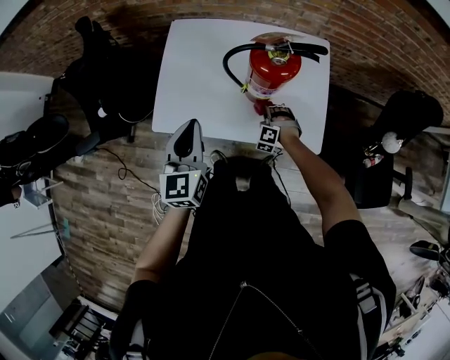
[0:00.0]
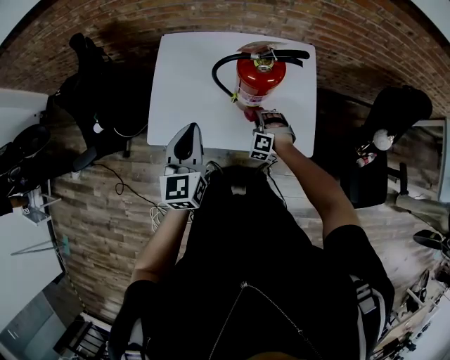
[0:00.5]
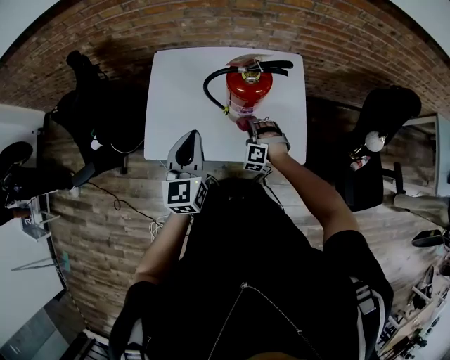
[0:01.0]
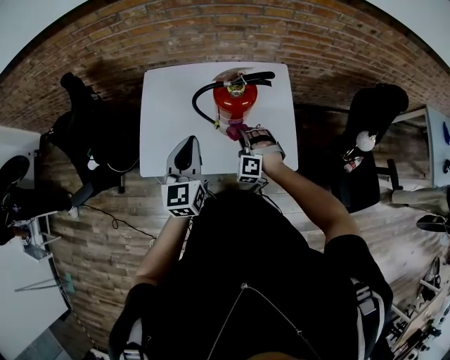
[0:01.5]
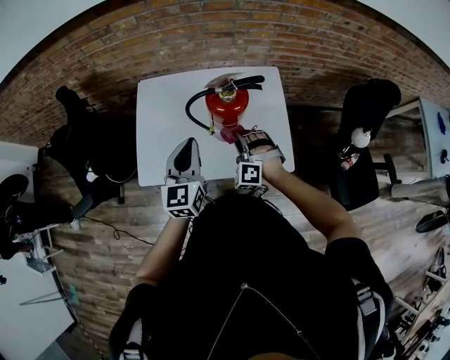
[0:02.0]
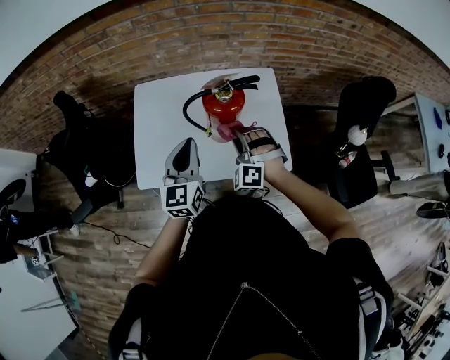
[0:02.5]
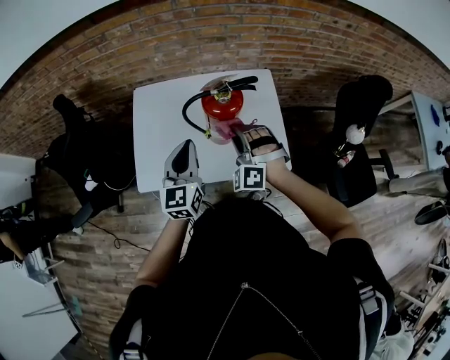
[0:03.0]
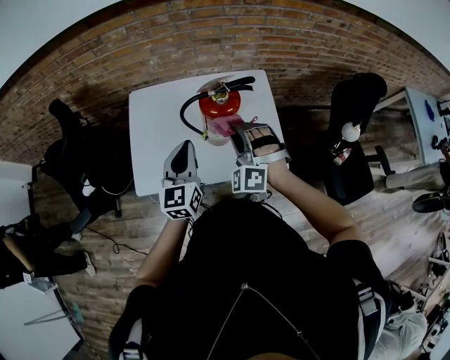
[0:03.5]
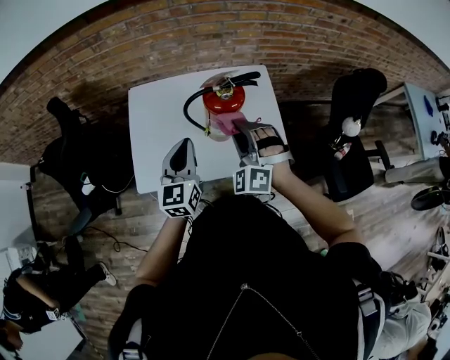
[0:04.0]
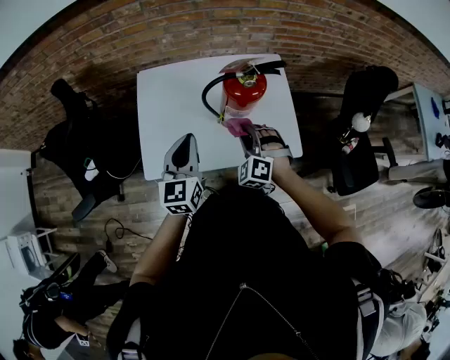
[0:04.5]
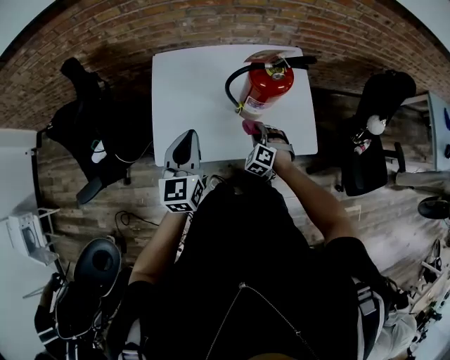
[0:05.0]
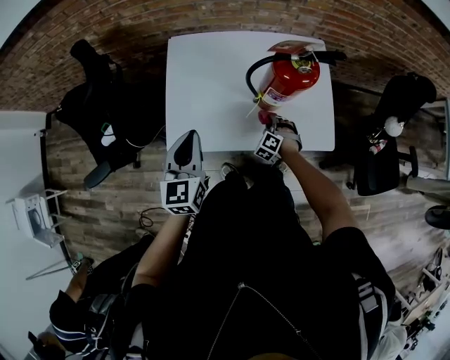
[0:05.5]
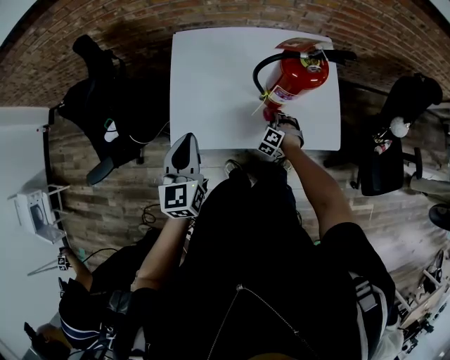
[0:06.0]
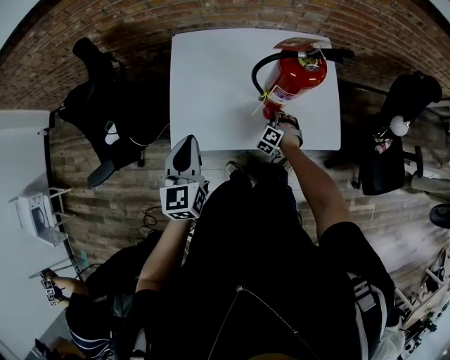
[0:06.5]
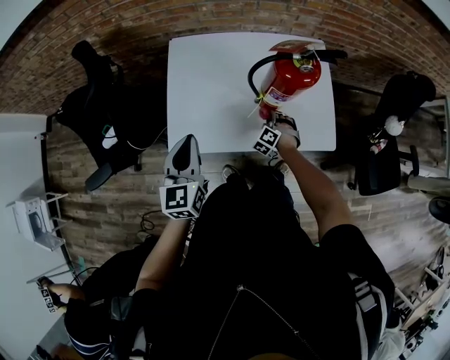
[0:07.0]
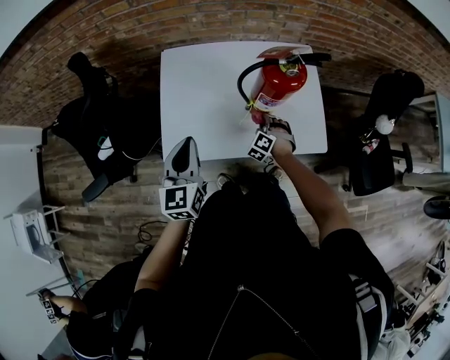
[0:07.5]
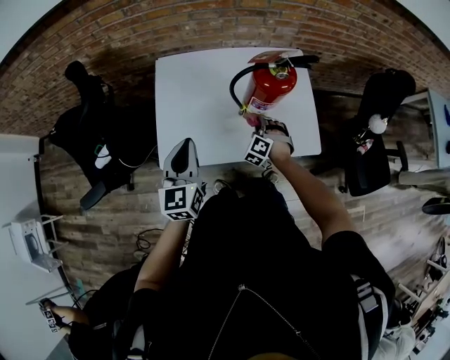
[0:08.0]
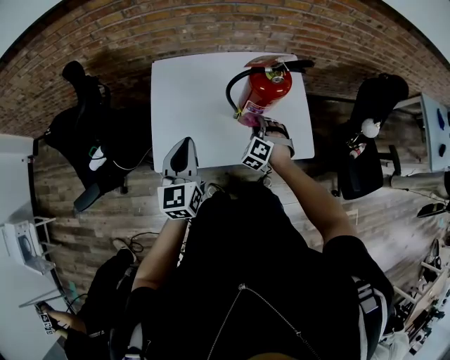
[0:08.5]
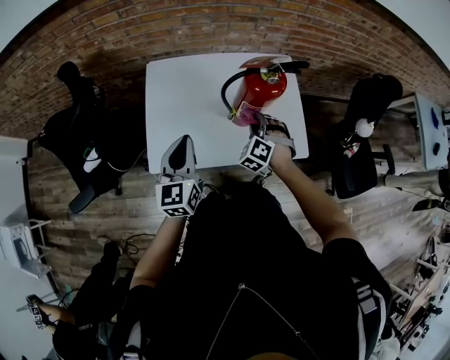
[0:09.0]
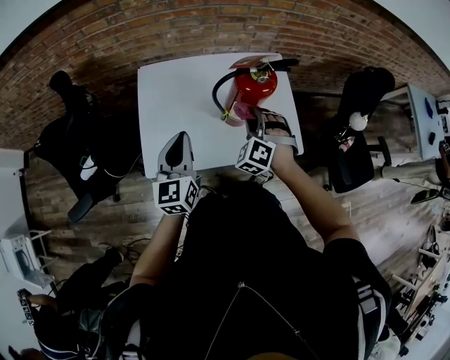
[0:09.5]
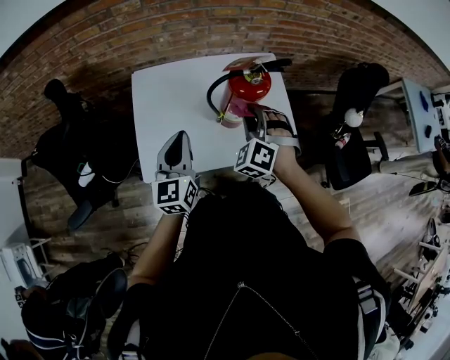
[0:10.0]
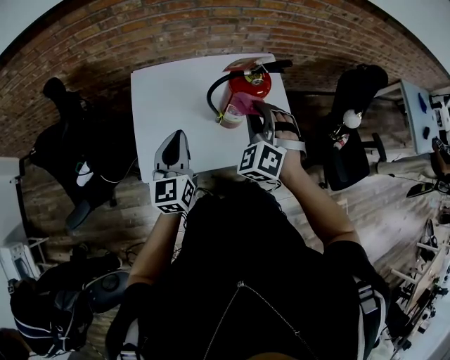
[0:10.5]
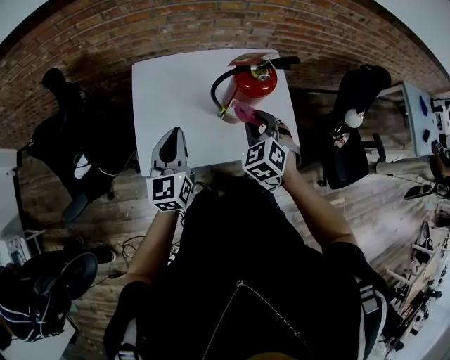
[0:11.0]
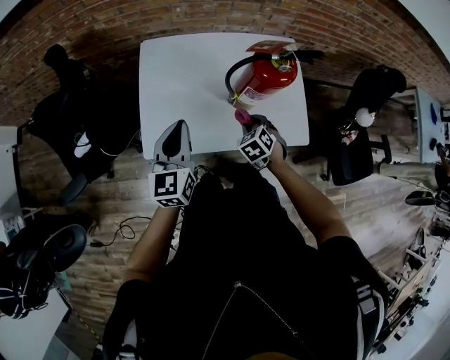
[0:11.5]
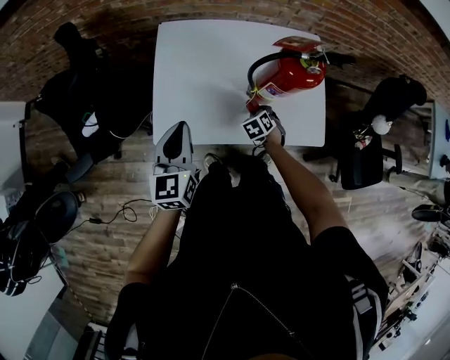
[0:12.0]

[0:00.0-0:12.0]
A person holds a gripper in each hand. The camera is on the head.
0:00.0 to 0:02.0: The right gripper goes some 20 cm upward; the left gripper moves to the right and forward, roughly 10 cm.
0:02.0 to 0:04.0: The right gripper is displaced upward by roughly 15 cm.
0:04.0 to 0:06.0: The right gripper goes roughly 40 cm downward, and tips its fingers downward by roughly 30 degrees. Meanwhile the left gripper heads to the left and backward, covering some 20 cm.
0:06.0 to 0:08.0: The right gripper heads upward, covering about 15 cm.
0:08.0 to 0:10.0: The right gripper shifts roughly 25 cm upward, while the left gripper ends up some 5 cm from where it was.
0:10.0 to 0:12.0: The left gripper travels to the left and downward by some 10 cm. Meanwhile the right gripper heads downward, covering some 30 cm, and points its fingers roughly 30 degrees further downward.

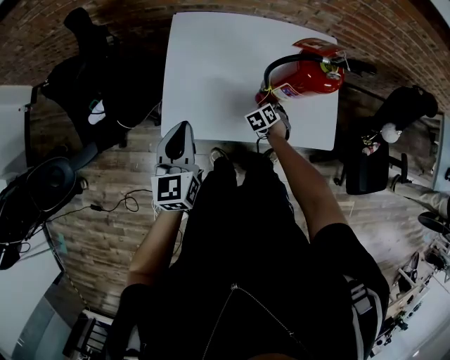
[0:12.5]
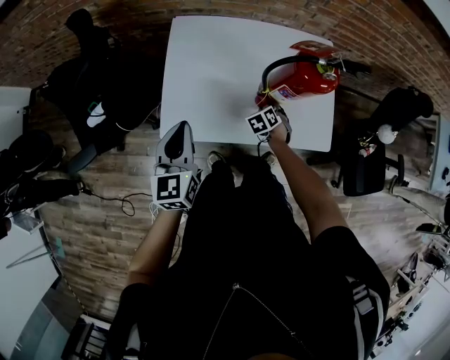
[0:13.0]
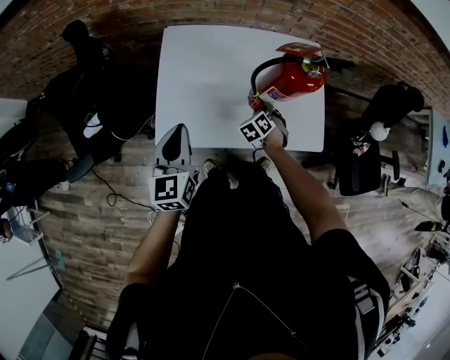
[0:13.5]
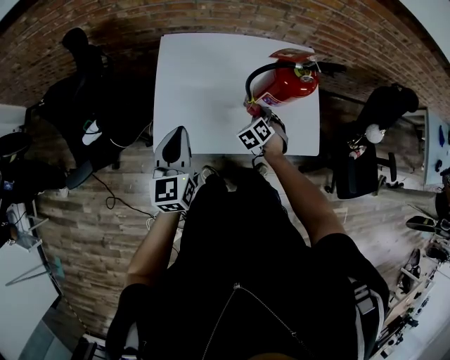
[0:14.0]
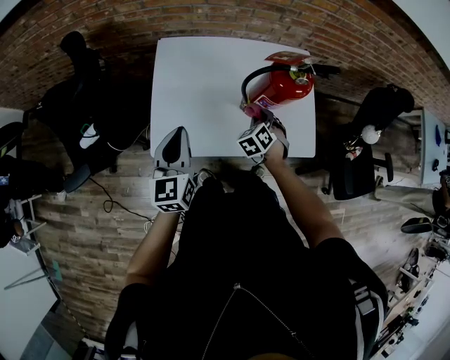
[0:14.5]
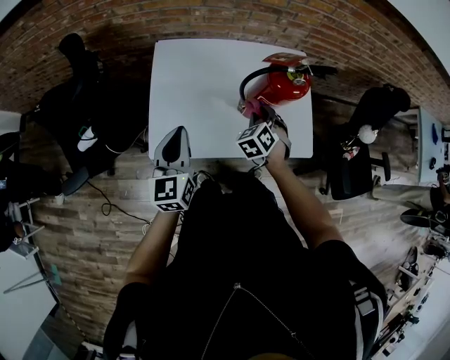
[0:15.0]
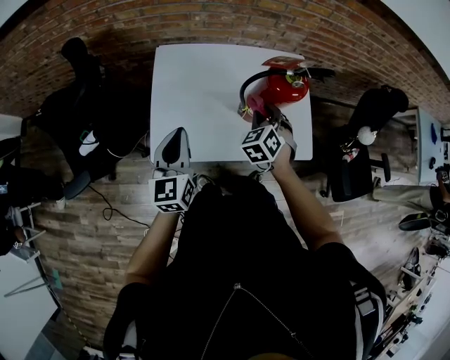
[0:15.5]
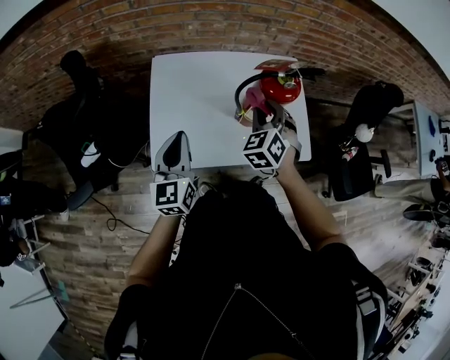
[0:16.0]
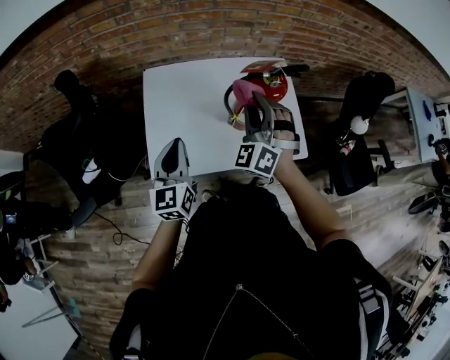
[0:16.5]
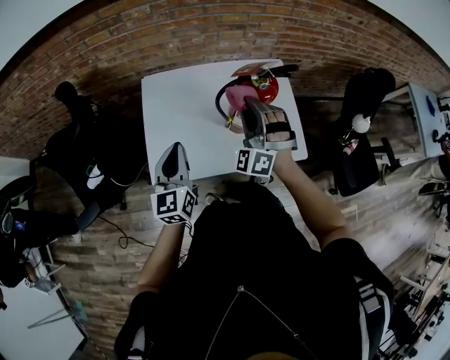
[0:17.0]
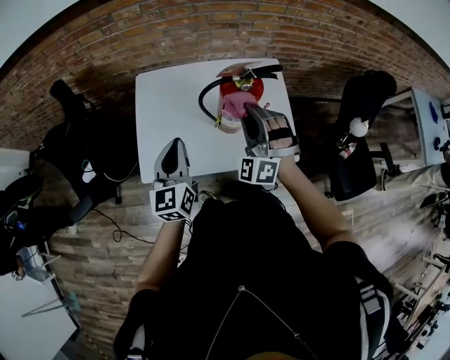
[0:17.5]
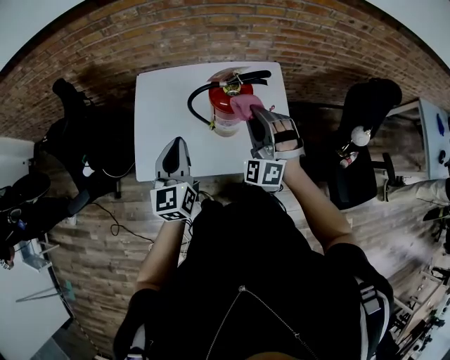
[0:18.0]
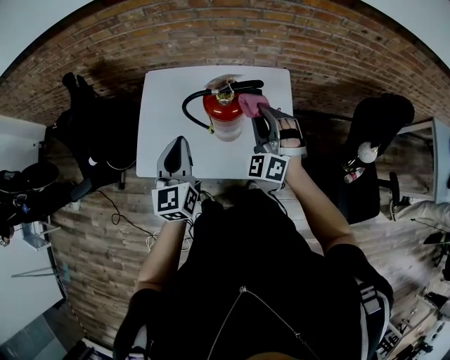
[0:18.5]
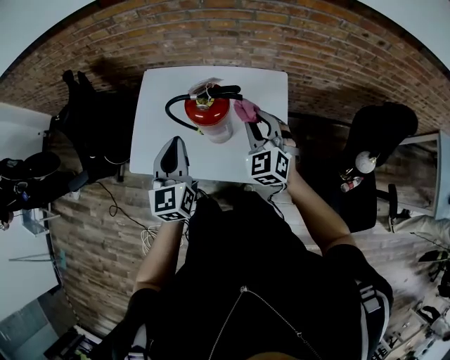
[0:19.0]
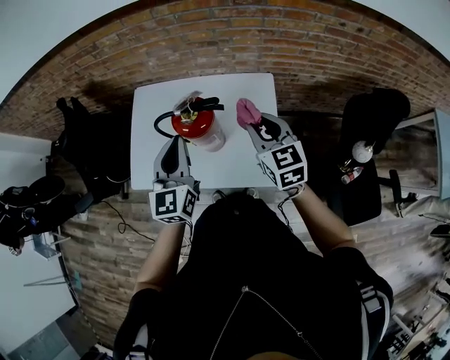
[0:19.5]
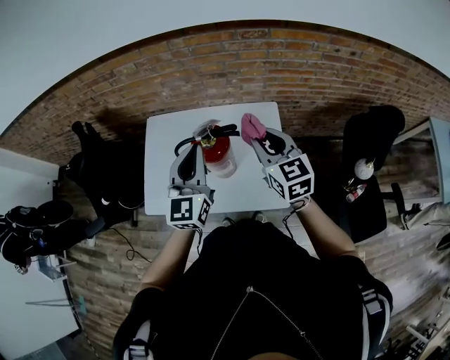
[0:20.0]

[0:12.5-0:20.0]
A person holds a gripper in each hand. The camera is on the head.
0:12.5 to 0:14.5: The right gripper heads upward, covering about 15 cm.
0:14.5 to 0:16.5: The right gripper heads upward, covering some 25 cm, and tips its fingers upward by about 40 degrees.
0:16.5 to 0:18.0: The two grippers go some 15 cm to the right.
0:18.0 to 0:20.0: The two grippers go about 15 cm to the right and upward. The right gripper rotates around the line of its fingers by roughly 70 degrees, clockwise from behind.

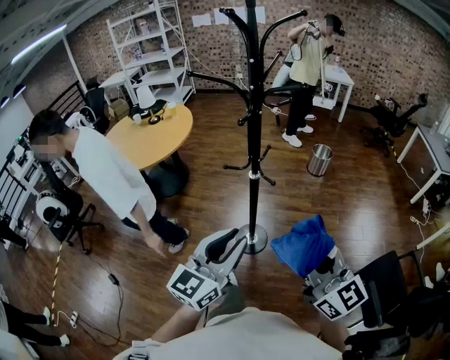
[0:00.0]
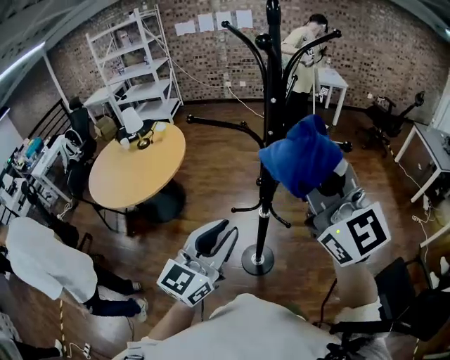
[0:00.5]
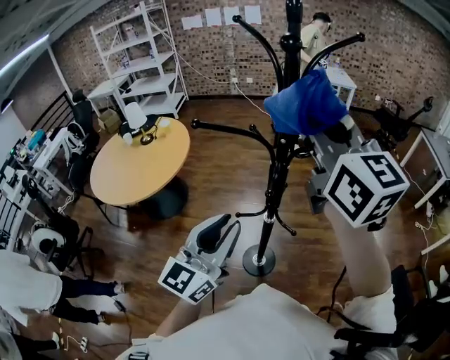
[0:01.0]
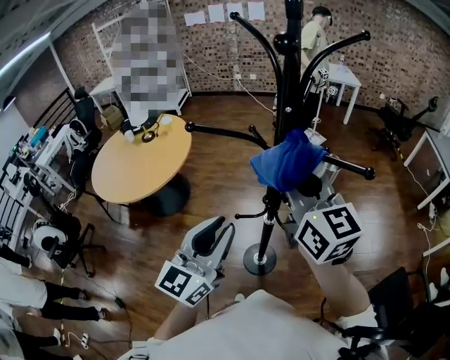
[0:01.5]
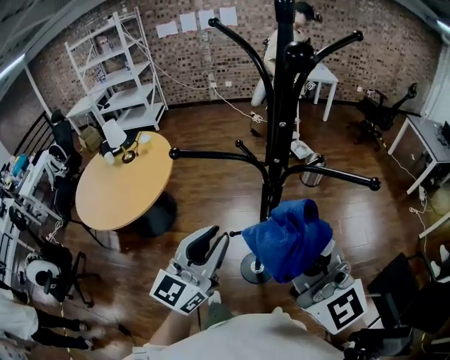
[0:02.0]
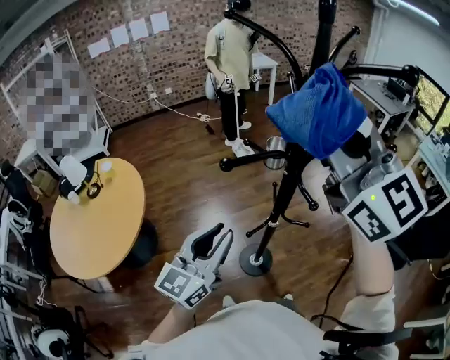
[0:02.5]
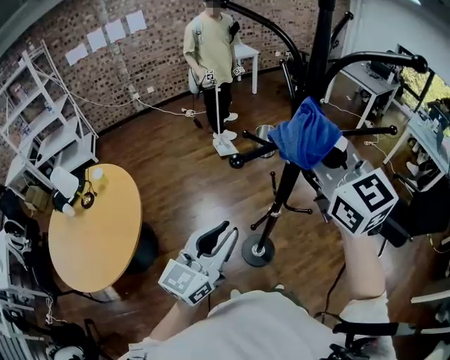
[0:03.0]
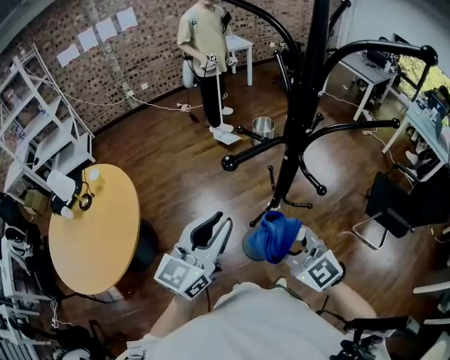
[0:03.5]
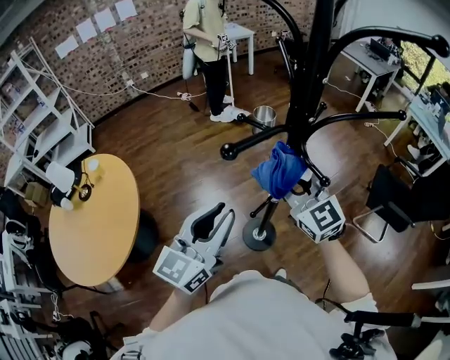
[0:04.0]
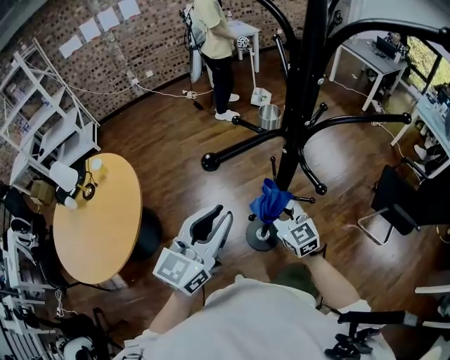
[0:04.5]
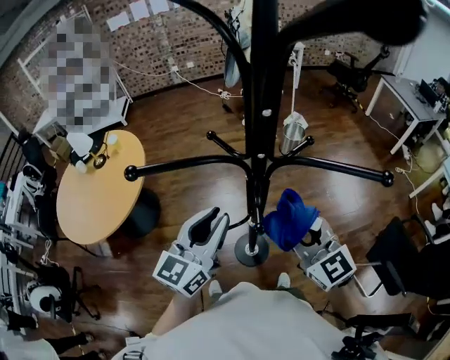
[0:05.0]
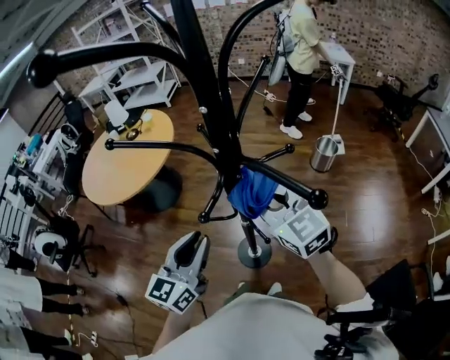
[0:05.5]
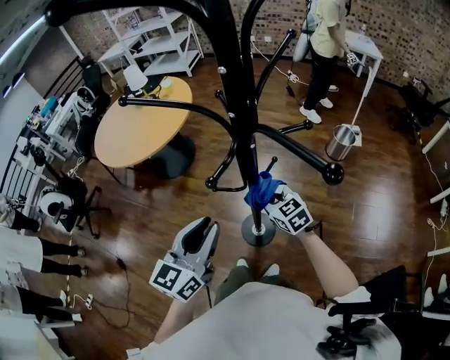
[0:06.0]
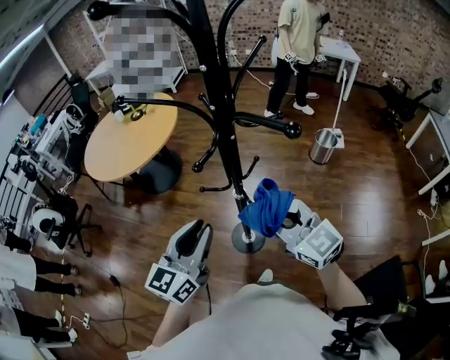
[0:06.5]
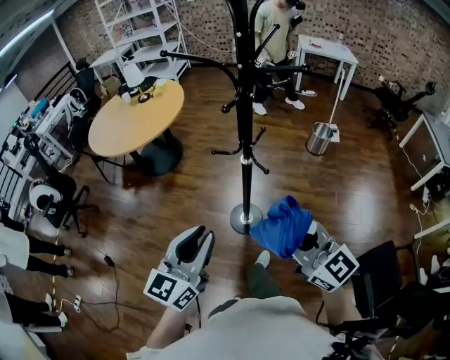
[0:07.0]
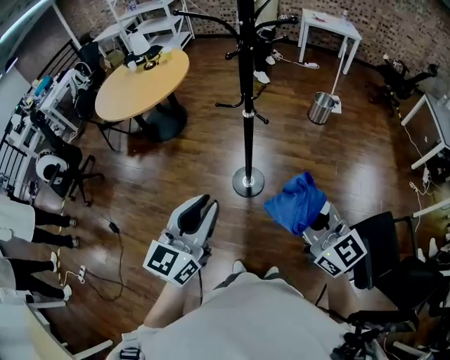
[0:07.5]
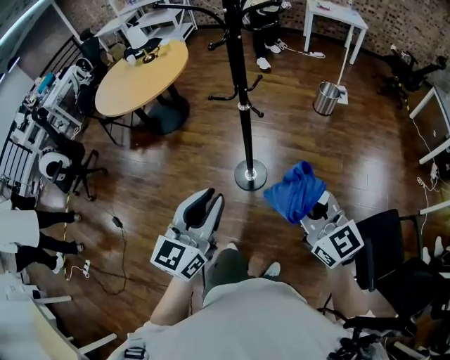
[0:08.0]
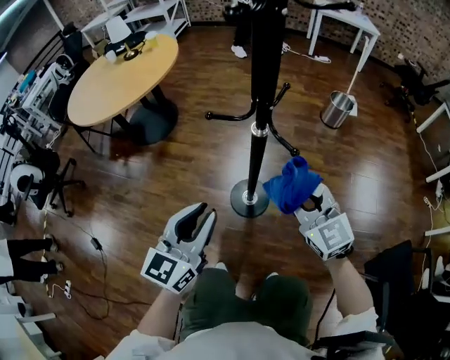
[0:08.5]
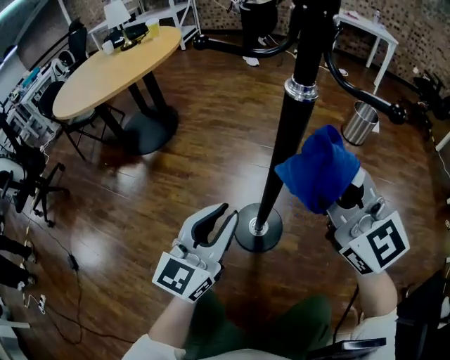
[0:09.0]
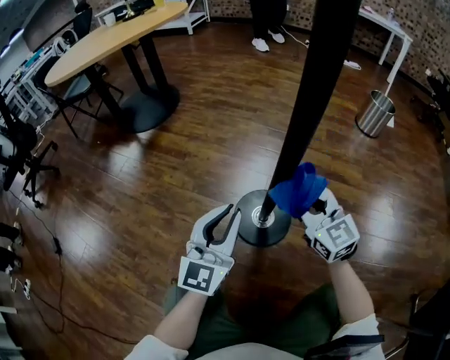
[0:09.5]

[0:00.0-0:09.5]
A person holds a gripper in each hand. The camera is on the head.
0:00.0 to 0:02.0: The left gripper is displaced forward and to the left by some 30 cm; the right gripper heads forward, to the left and upward, covering approximately 30 cm.
0:02.0 to 0:04.0: The left gripper shifts by some 10 cm, and turns by some 30 degrees, while the right gripper swings up and down, some 35 cm each way, with 2 reversals, and changes its angle by about 30 degrees.
0:04.0 to 0:05.5: The right gripper moves some 15 cm downward and comes back, and changes its angle by approximately 40 degrees. The left gripper ends up roughly 15 cm from where it was, and turns by about 50 degrees.
0:05.5 to 0:07.5: Both grippers travel together backward, roughly 35 cm.
0:07.5 to 0:09.5: Both grippers move downward and forward, approximately 70 cm.
